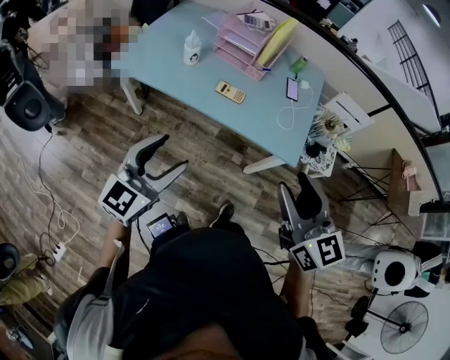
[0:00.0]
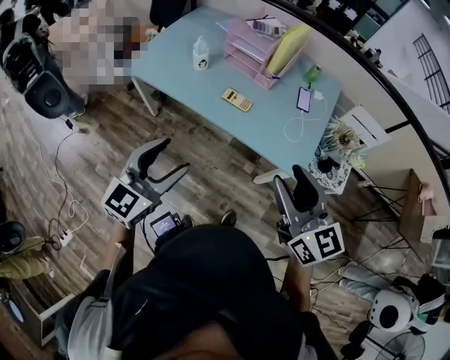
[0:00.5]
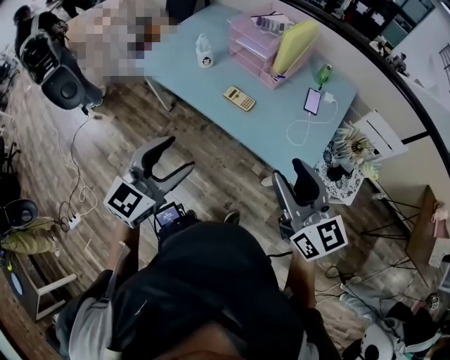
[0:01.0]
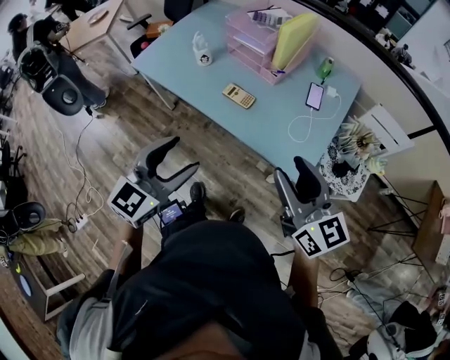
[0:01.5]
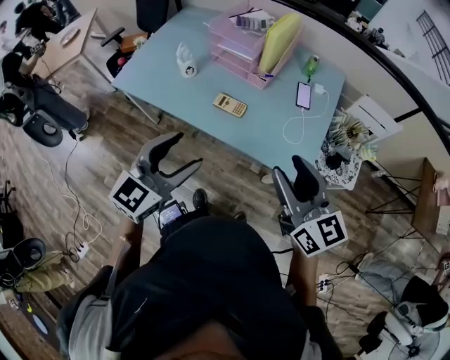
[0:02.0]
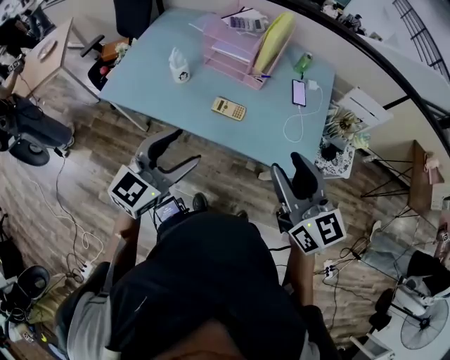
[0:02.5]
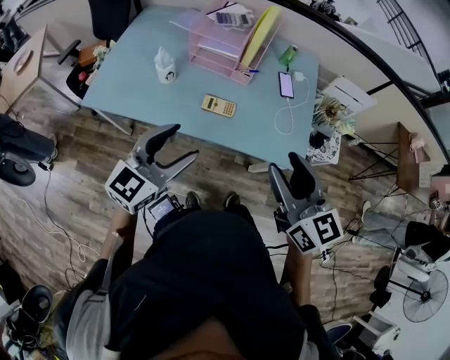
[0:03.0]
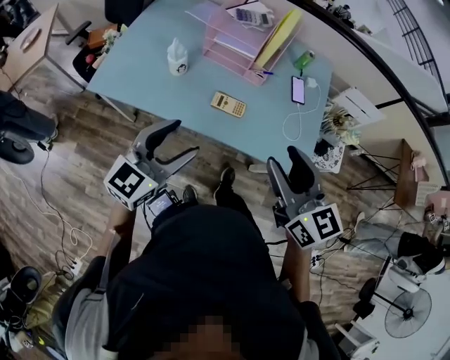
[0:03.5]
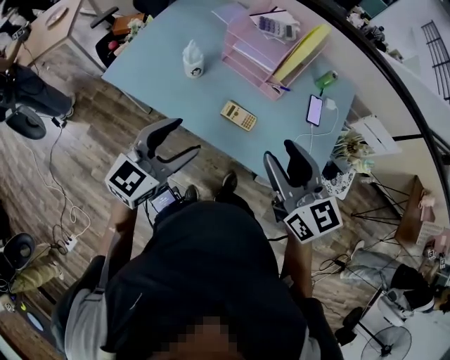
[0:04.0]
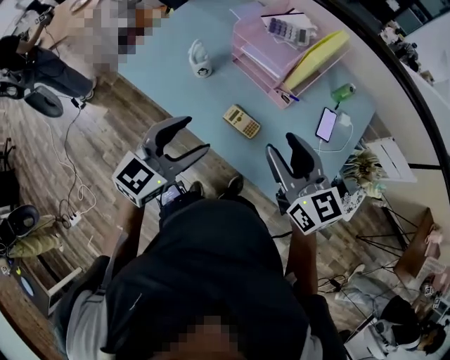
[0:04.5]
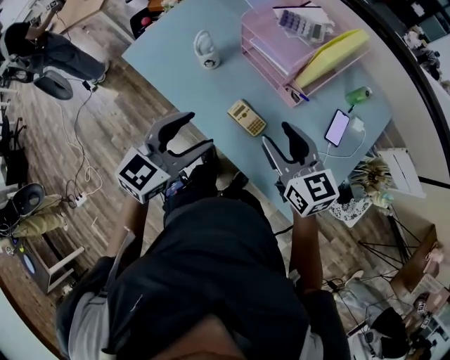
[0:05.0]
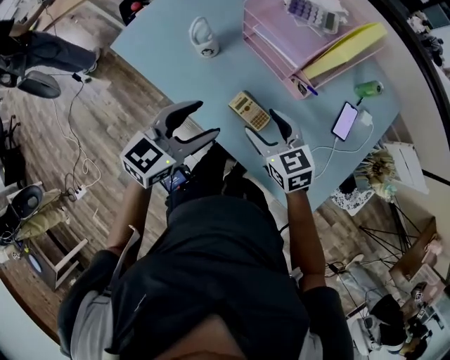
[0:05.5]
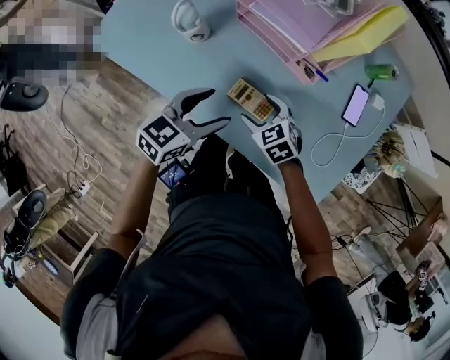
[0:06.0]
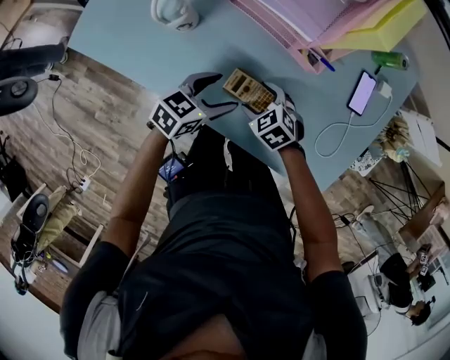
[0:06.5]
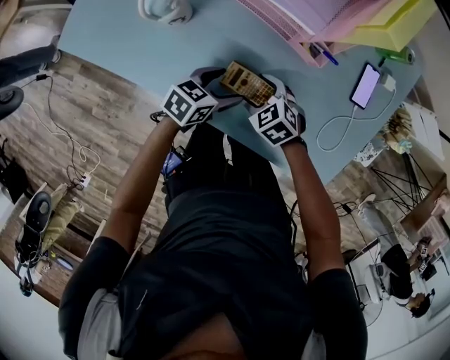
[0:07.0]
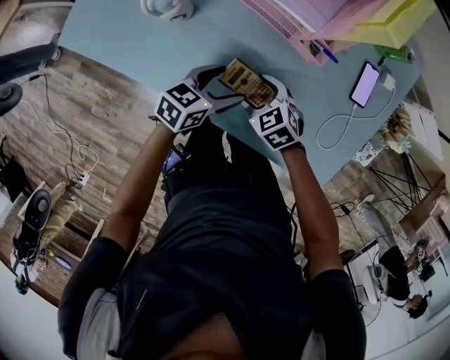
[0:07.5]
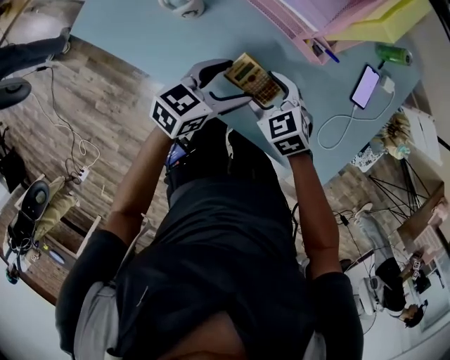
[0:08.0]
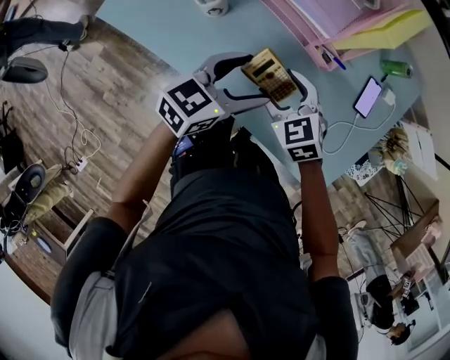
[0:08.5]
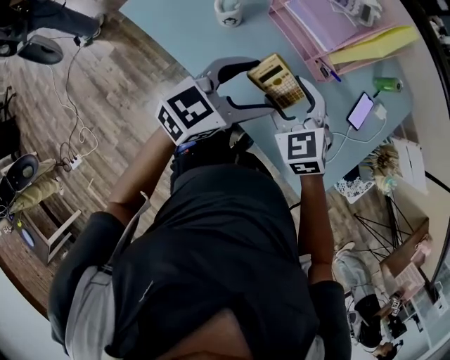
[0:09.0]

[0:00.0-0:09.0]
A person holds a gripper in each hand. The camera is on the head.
0:00.0 to 0:02.0: The right gripper is displaced forward and to the right by about 20 cm. The left gripper goes roughly 15 cm to the right and forward.
0:02.0 to 0:04.5: The left gripper travels forward by roughly 15 cm, while the right gripper goes approximately 25 cm forward and to the left.
0:04.5 to 0:07.0: Both grippers move downward, some 40 cm. The right gripper points its fingers roughly 50 degrees further downward, and opens up. Meanwhile the left gripper rotates approximately 40 degrees.
0:07.0 to 0:09.0: The two grippers go roughly 25 cm upward. The left gripper rotates approximately 40 degrees; the right gripper rotates some 30 degrees.

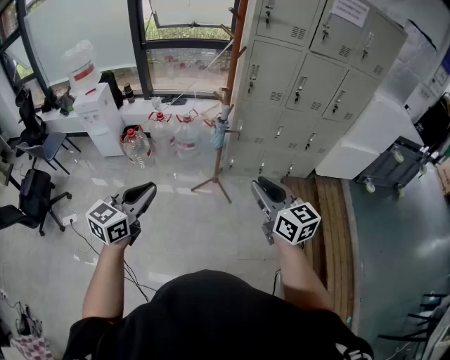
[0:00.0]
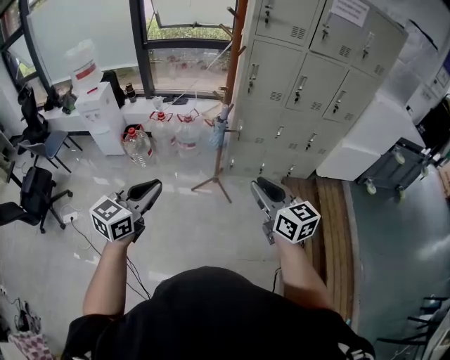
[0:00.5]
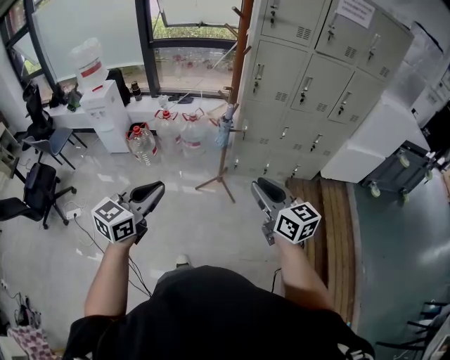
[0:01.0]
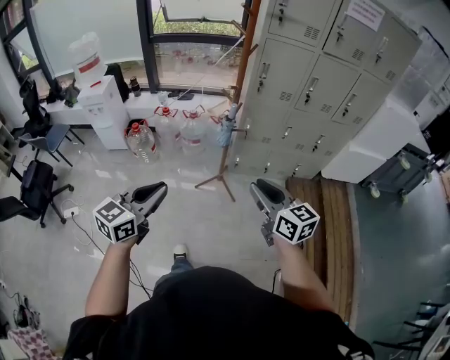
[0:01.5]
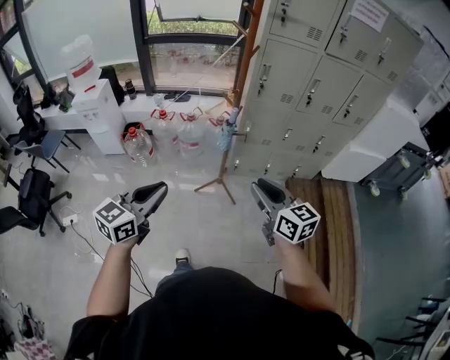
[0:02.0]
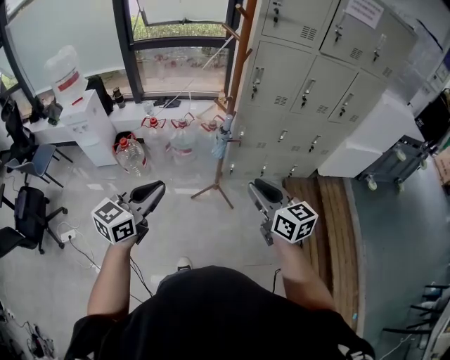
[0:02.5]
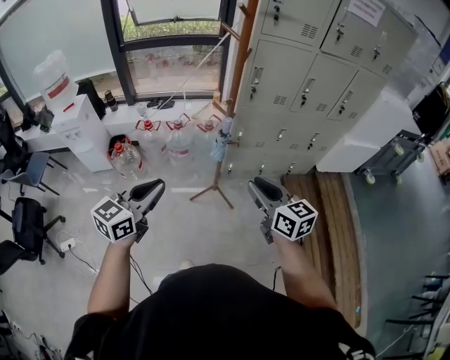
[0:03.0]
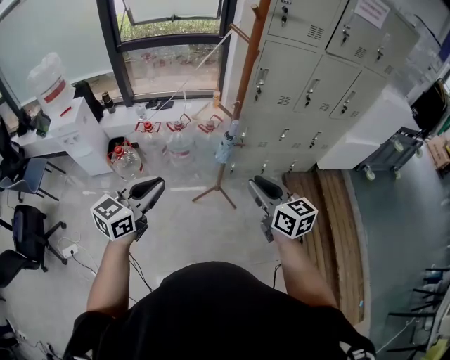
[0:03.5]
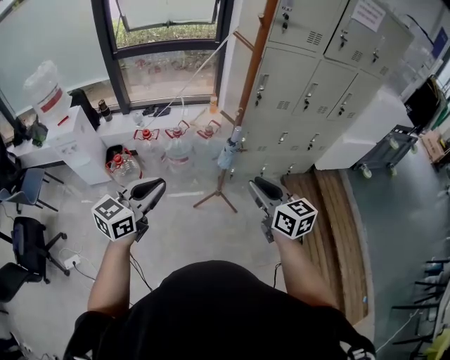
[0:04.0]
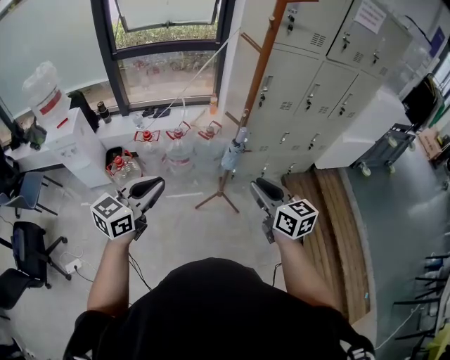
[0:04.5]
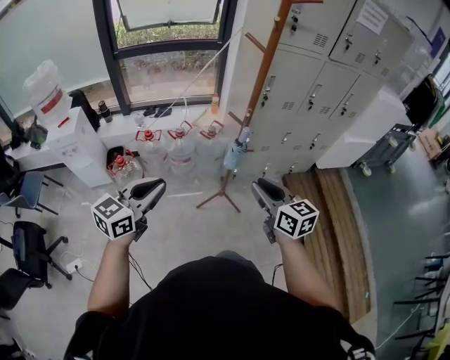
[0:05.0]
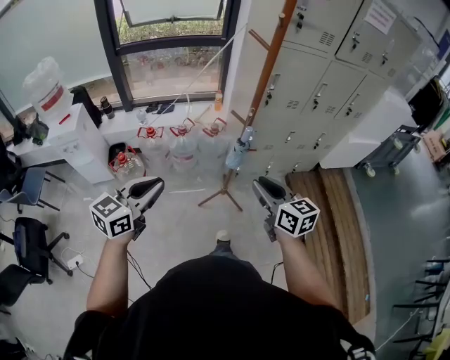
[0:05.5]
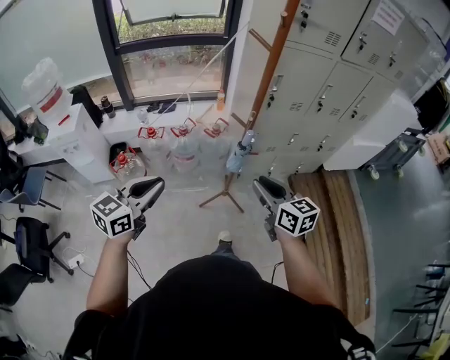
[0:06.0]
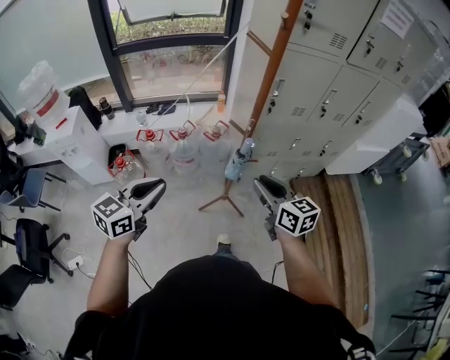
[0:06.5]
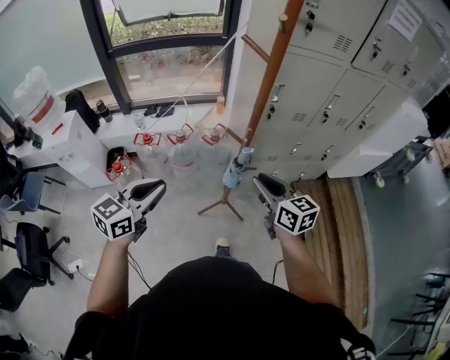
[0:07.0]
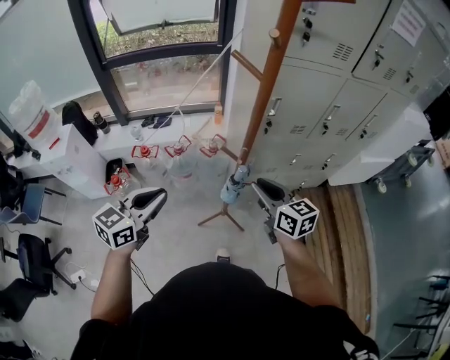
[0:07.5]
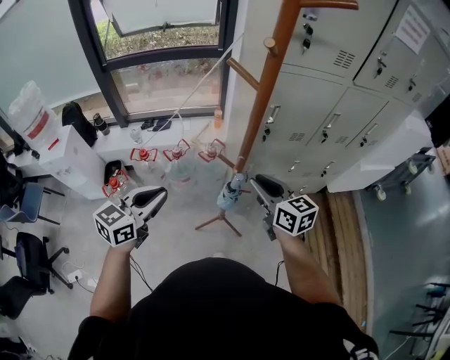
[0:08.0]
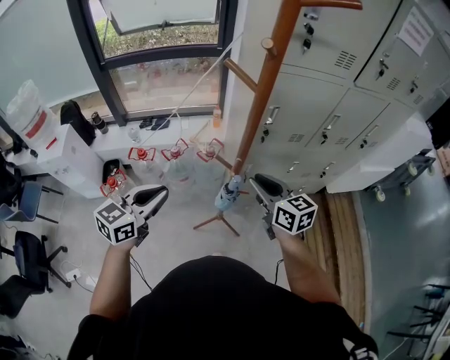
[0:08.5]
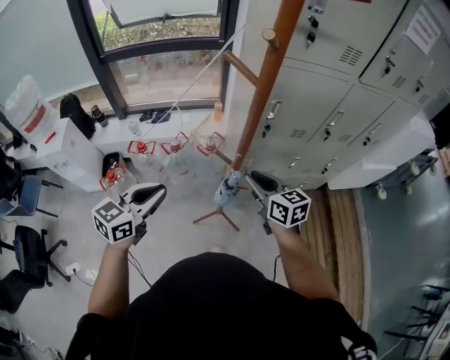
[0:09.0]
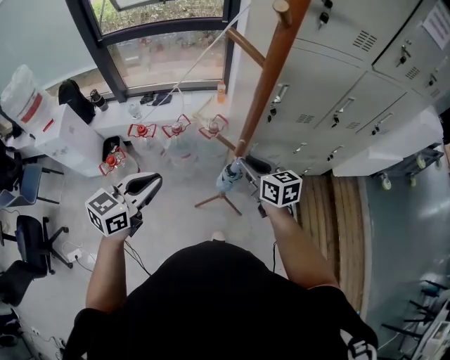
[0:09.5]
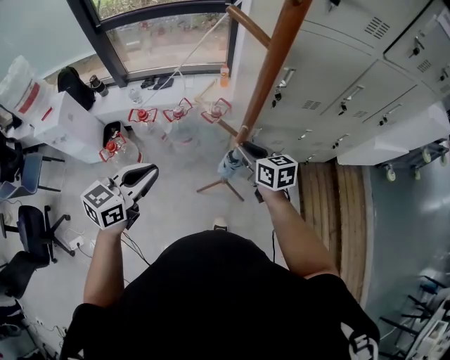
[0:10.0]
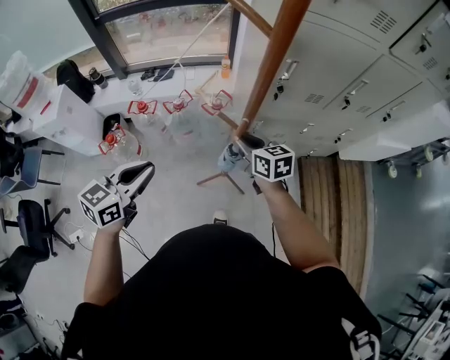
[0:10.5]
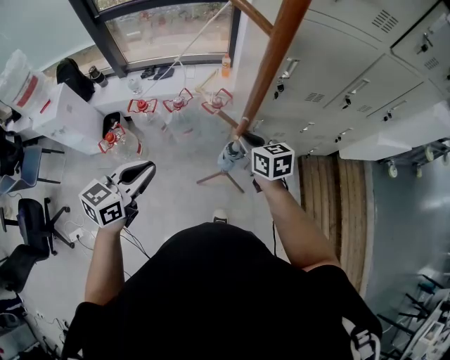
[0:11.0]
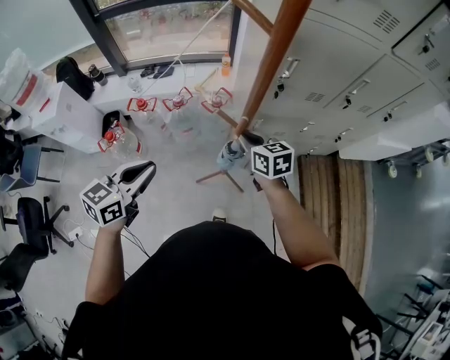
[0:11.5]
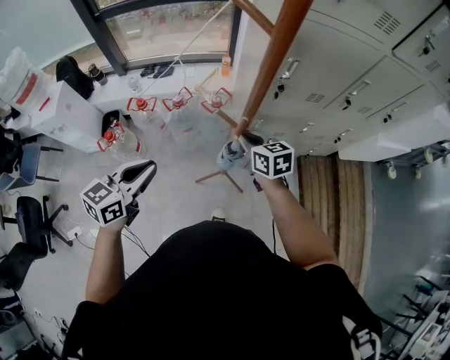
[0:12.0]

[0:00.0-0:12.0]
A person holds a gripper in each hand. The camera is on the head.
0:00.0 to 0:02.0: Both grippers travel together forward, some 10 cm.
0:02.0 to 0:04.0: The grippers both shift forward and to the left by some 25 cm.
0:04.0 to 0:06.0: The two grippers go about 5 cm forward.
0:06.0 to 0:08.0: The two grippers go roughly 25 cm forward.
0:08.0 to 0:10.0: The left gripper is displaced downward by approximately 5 cm. Meanwhile the right gripper goes approximately 15 cm downward and forward.
0:10.0 to 0:12.0: The right gripper closes its fingers.

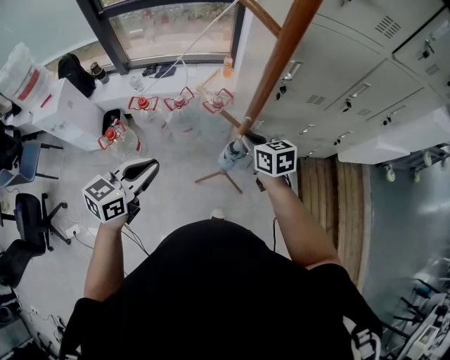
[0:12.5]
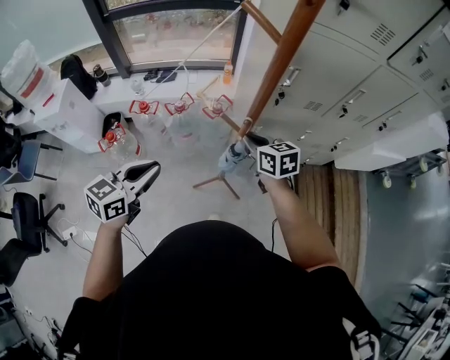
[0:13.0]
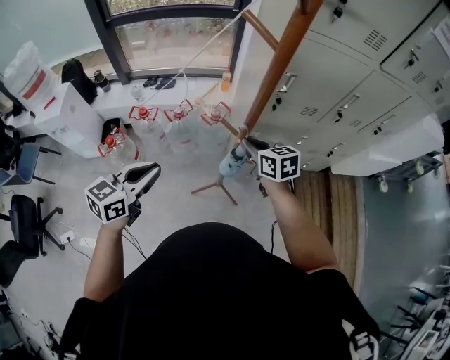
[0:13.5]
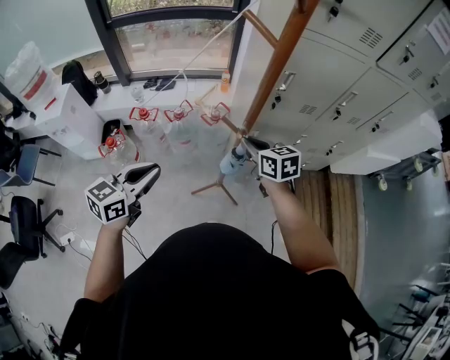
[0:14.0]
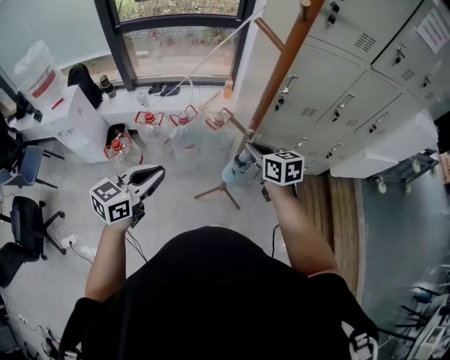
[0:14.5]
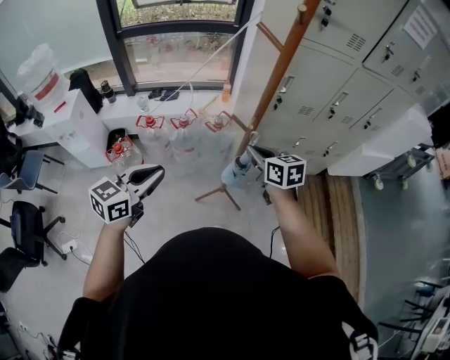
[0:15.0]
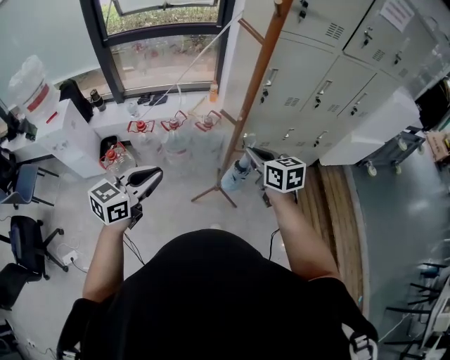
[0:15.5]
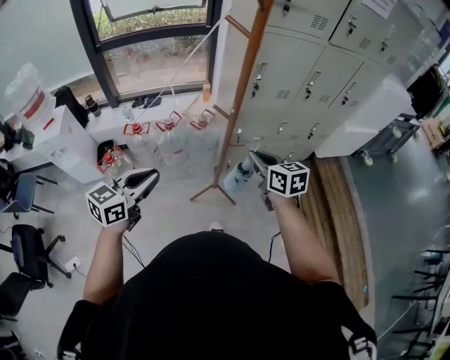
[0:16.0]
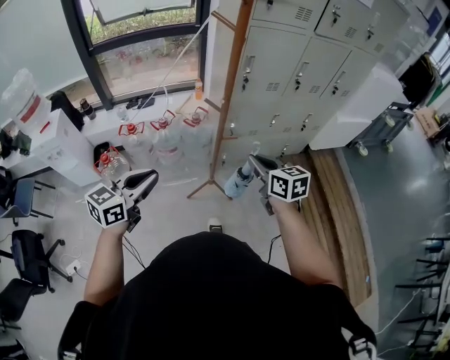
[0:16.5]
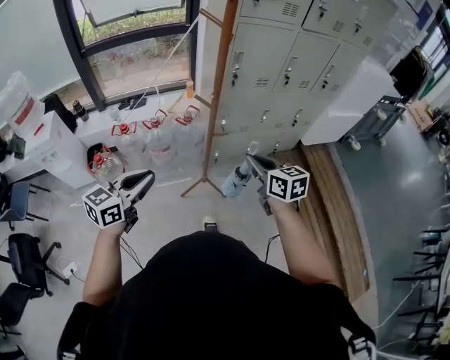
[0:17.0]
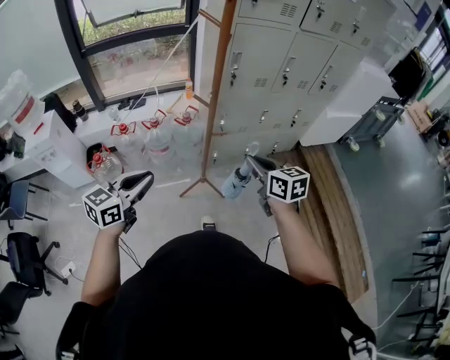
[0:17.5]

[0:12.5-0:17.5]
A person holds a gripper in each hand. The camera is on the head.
0:12.5 to 0:15.0: The right gripper heads backward and upward, covering approximately 15 cm, while the left gripper shifts approximately 15 cm backward, upward and to the left.
0:15.0 to 0:17.5: The left gripper is displaced backward and to the right by some 15 cm; the right gripper travels backward and to the right by about 25 cm.

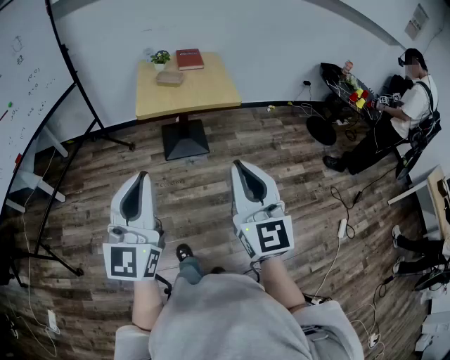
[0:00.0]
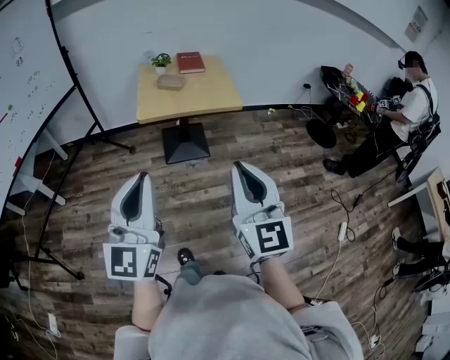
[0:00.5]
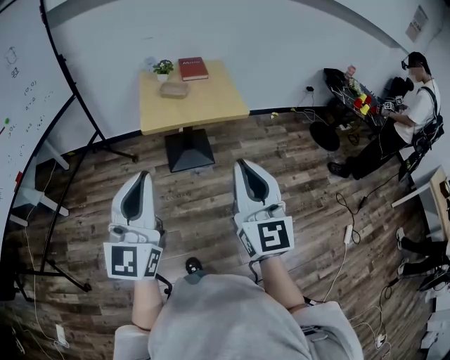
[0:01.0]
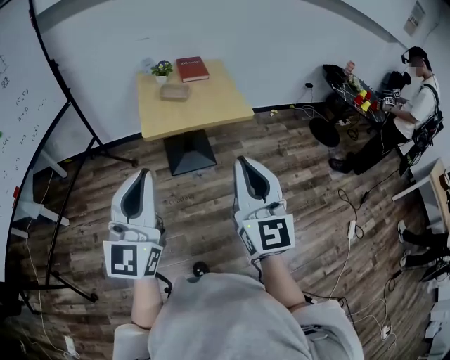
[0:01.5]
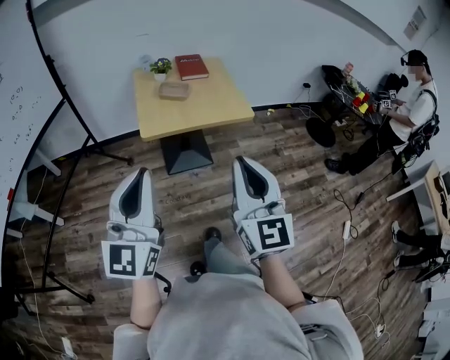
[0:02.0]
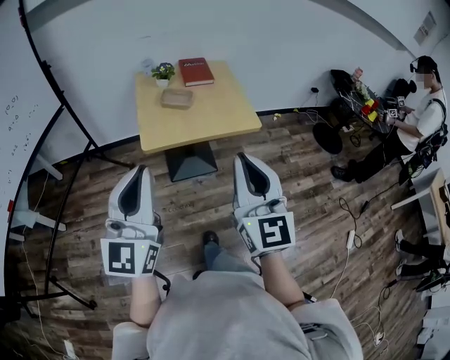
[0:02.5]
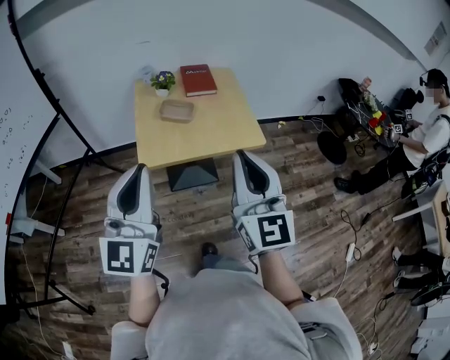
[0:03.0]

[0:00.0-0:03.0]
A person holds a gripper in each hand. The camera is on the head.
0:00.0 to 0:01.5: The two grippers go approximately 15 cm forward and to the left.
0:01.5 to 0:03.0: Both grippers travel together forward, approximately 20 cm.
